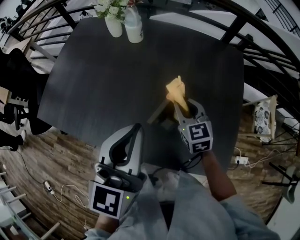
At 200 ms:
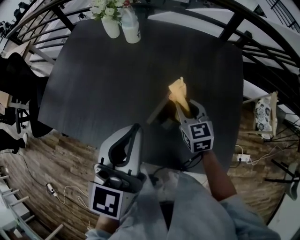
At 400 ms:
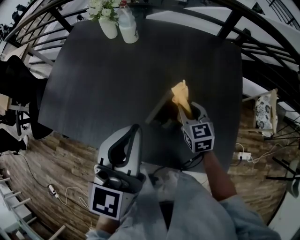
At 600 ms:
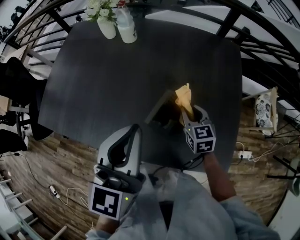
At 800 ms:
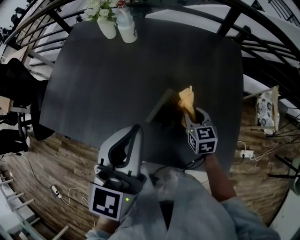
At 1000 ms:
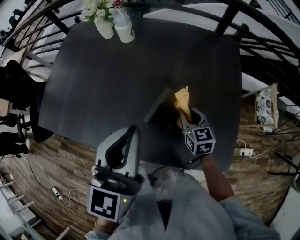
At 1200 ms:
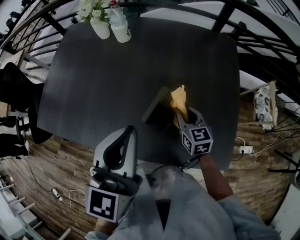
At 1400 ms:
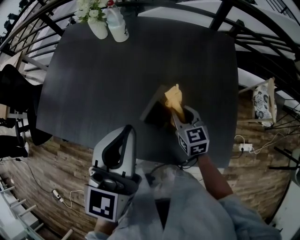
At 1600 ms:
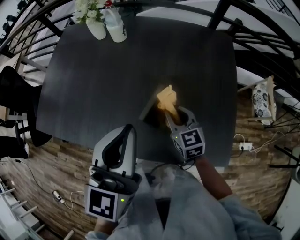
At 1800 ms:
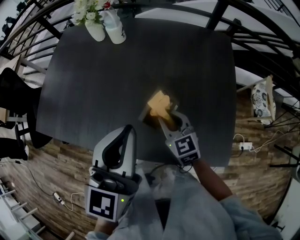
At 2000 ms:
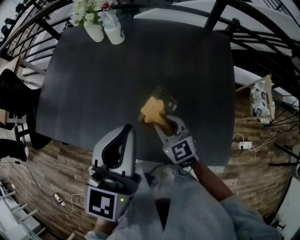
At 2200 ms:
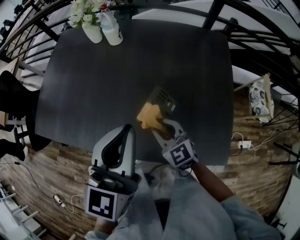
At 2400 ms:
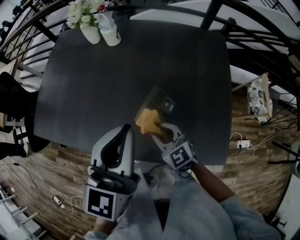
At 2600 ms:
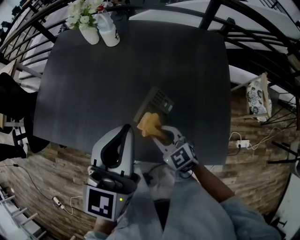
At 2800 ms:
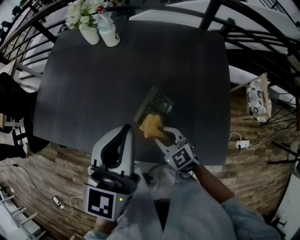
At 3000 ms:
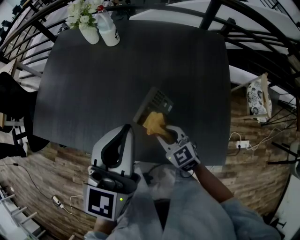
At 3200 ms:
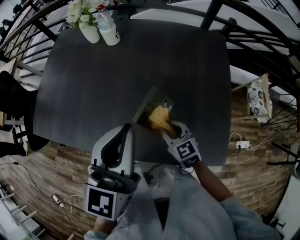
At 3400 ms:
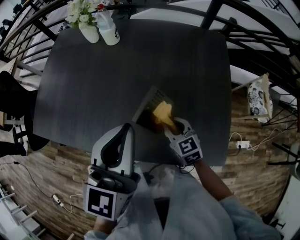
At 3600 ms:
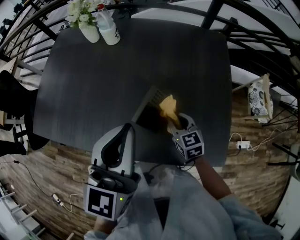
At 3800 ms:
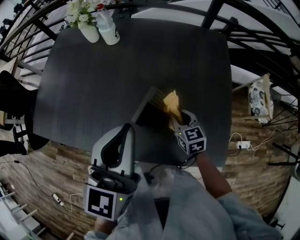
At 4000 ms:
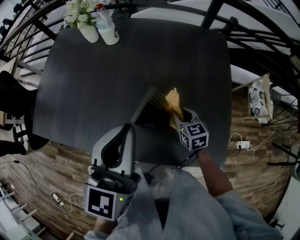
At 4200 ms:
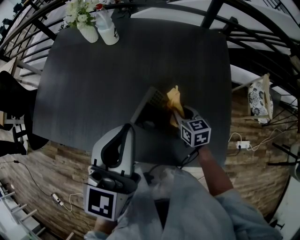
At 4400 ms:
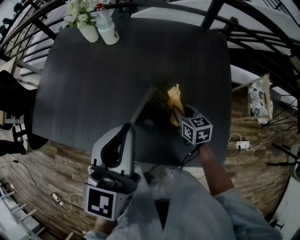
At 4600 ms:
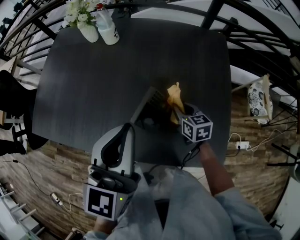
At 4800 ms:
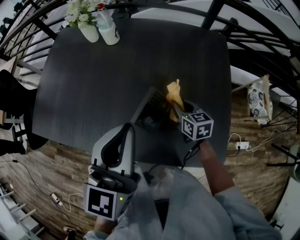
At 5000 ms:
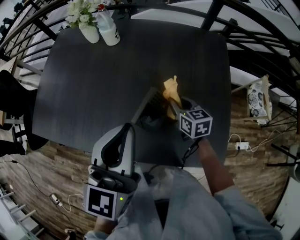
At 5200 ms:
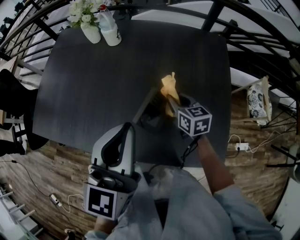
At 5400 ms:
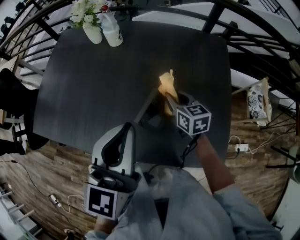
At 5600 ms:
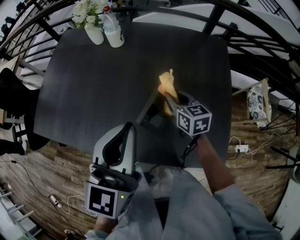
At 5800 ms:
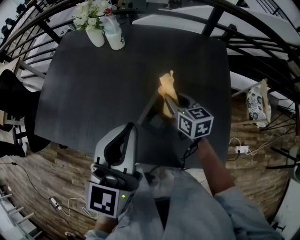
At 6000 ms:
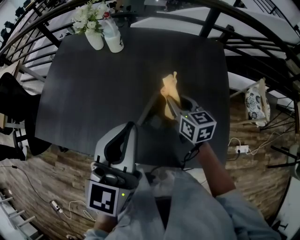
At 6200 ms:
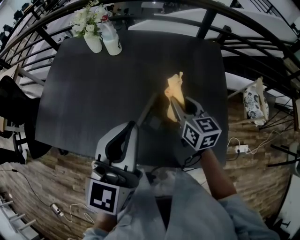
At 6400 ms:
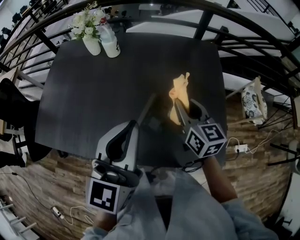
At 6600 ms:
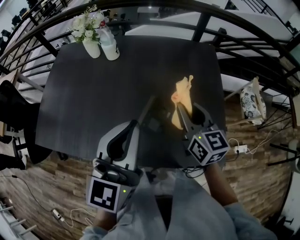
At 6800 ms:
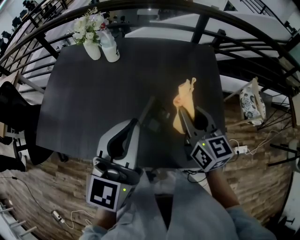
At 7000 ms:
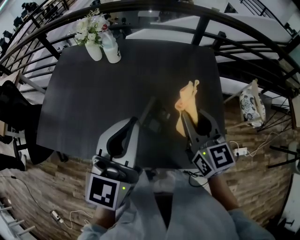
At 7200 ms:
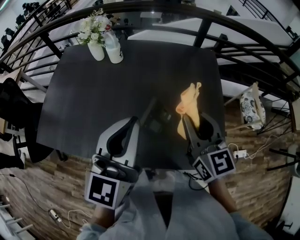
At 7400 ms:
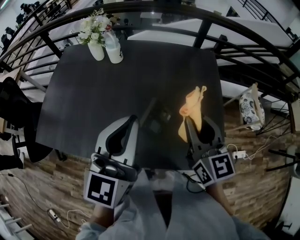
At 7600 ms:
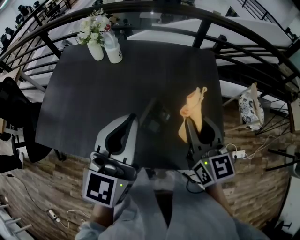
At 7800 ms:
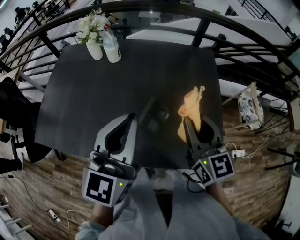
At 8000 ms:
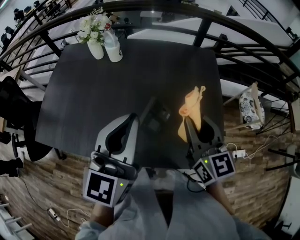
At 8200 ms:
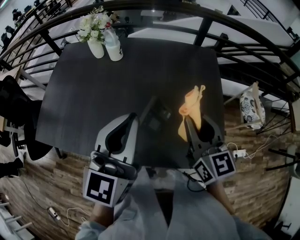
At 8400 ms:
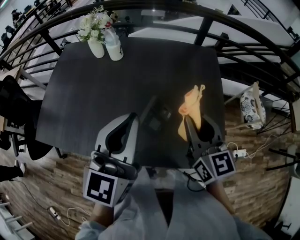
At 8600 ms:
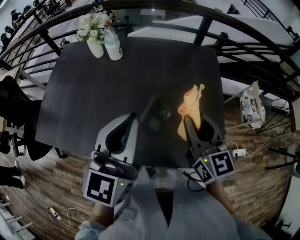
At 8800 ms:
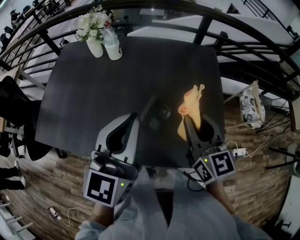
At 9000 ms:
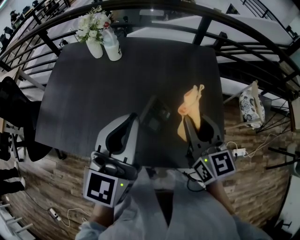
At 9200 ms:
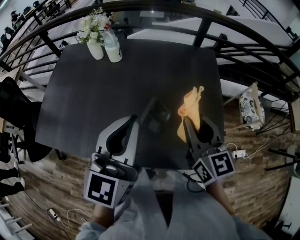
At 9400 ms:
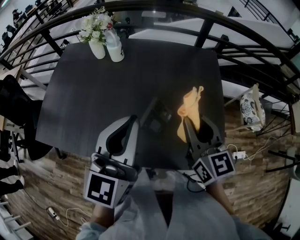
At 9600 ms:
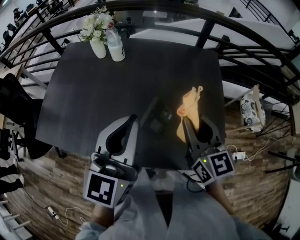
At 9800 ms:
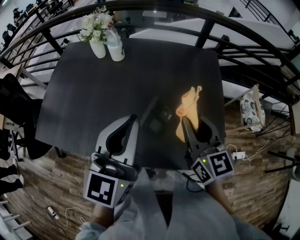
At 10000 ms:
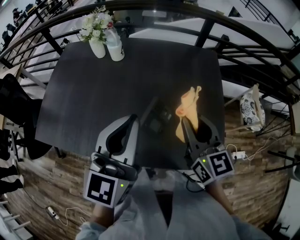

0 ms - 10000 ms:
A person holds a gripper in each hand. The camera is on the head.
0 ms - 1400 ms: The right gripper changes place by about 5 cm.
1400 ms - 2800 ms: The right gripper goes some 10 cm backward and to the left, and swivels roughly 20 degrees.
2800 ms - 4200 ms: The right gripper travels to the right and forward by about 15 cm, and turns by some 30 degrees.
4200 ms - 5800 ms: The right gripper heads upward, to the left and forward, covering roughly 10 cm.
5800 ms - 7200 ms: The right gripper goes roughly 20 cm upward and backward, and changes its angle by about 30 degrees.
7200 ms - 8600 ms: The grippers make only small movements.
8600 ms - 10000 ms: Both grippers stay put.

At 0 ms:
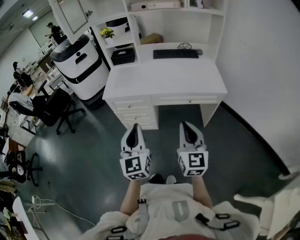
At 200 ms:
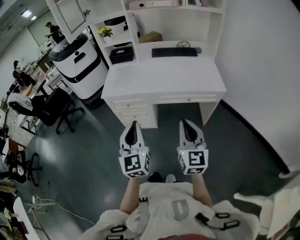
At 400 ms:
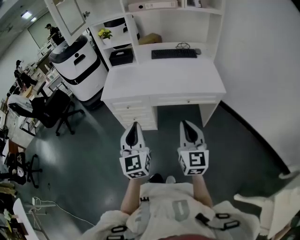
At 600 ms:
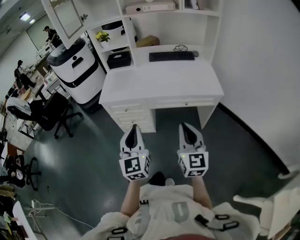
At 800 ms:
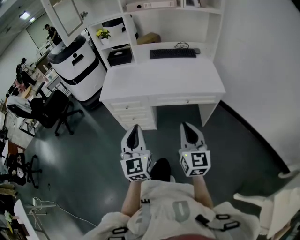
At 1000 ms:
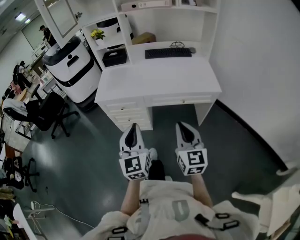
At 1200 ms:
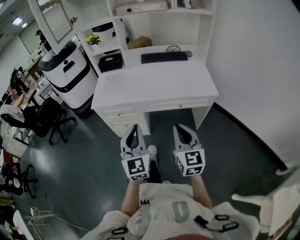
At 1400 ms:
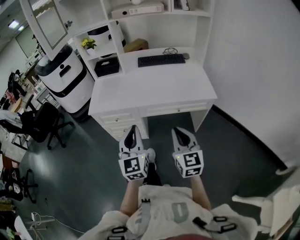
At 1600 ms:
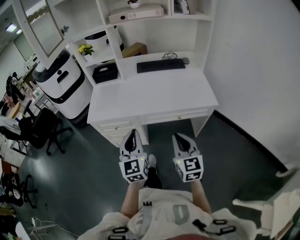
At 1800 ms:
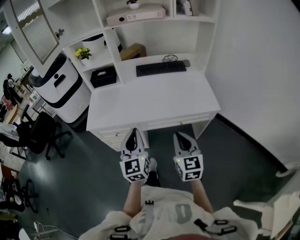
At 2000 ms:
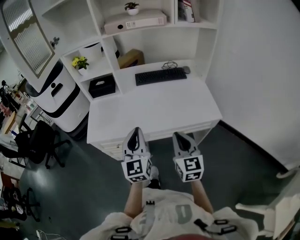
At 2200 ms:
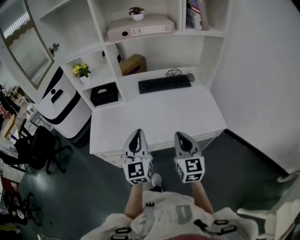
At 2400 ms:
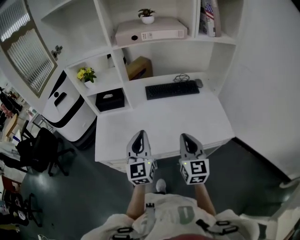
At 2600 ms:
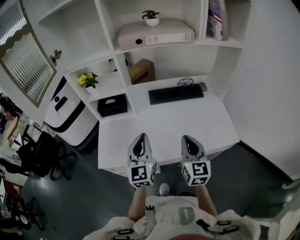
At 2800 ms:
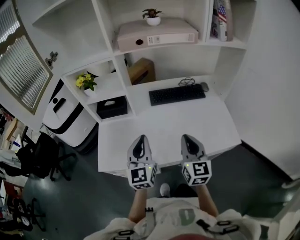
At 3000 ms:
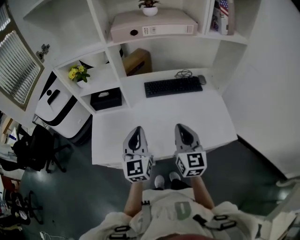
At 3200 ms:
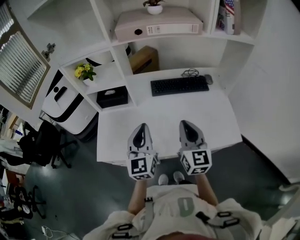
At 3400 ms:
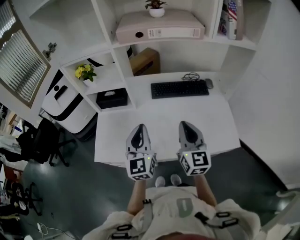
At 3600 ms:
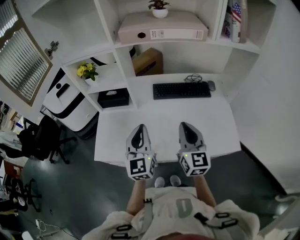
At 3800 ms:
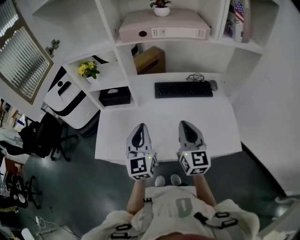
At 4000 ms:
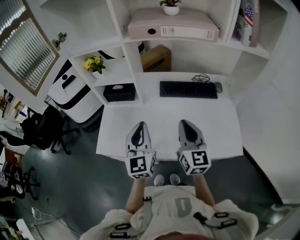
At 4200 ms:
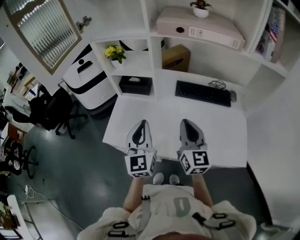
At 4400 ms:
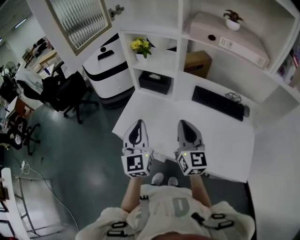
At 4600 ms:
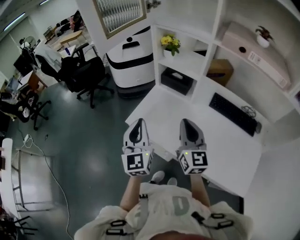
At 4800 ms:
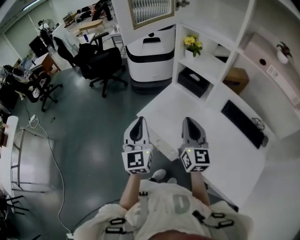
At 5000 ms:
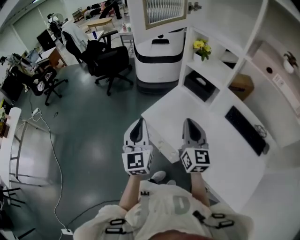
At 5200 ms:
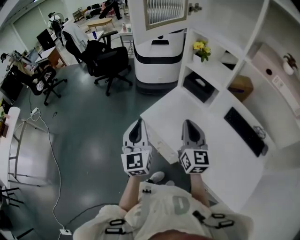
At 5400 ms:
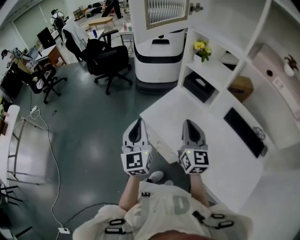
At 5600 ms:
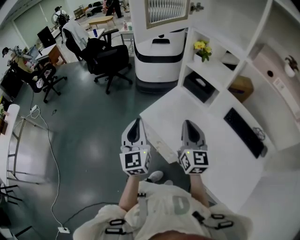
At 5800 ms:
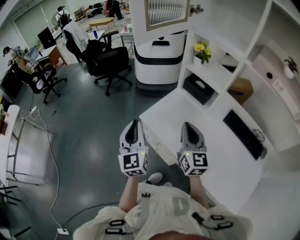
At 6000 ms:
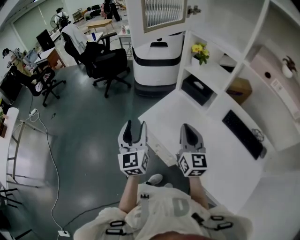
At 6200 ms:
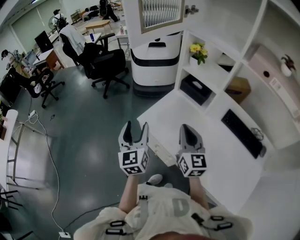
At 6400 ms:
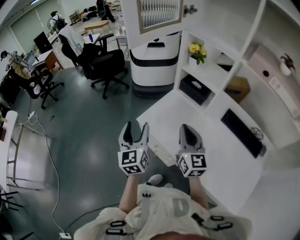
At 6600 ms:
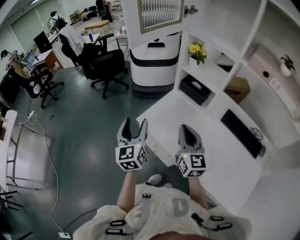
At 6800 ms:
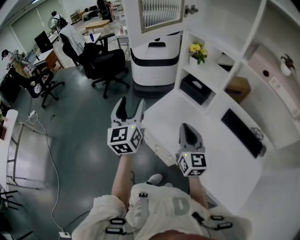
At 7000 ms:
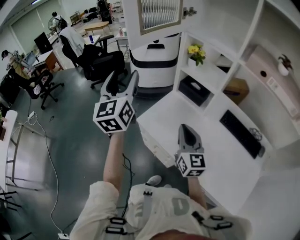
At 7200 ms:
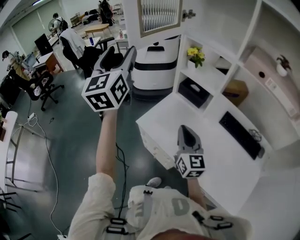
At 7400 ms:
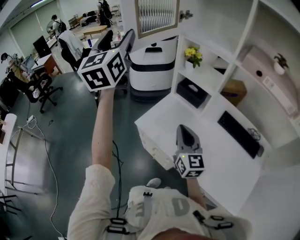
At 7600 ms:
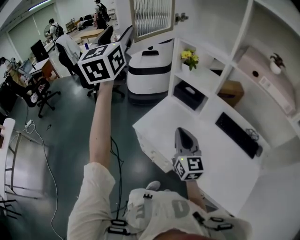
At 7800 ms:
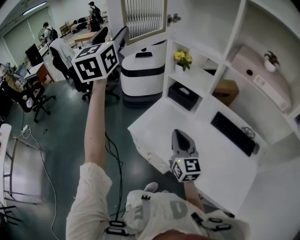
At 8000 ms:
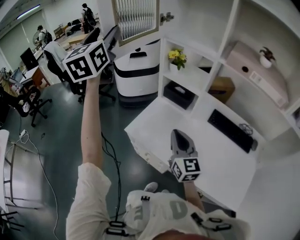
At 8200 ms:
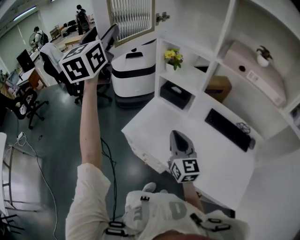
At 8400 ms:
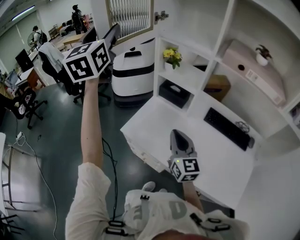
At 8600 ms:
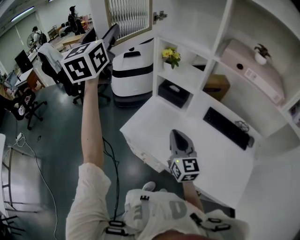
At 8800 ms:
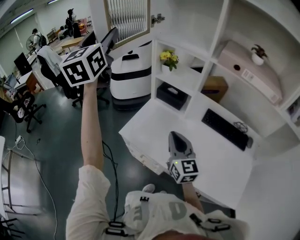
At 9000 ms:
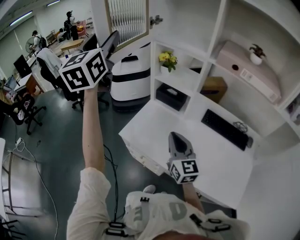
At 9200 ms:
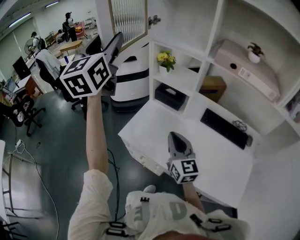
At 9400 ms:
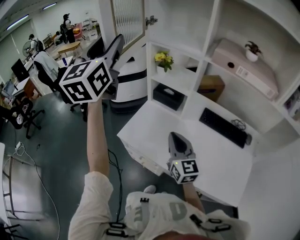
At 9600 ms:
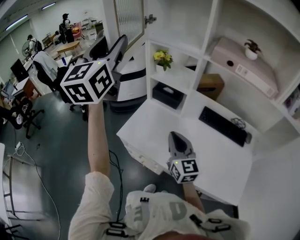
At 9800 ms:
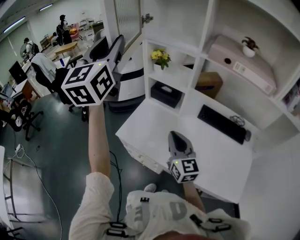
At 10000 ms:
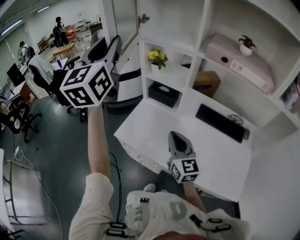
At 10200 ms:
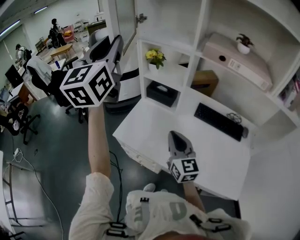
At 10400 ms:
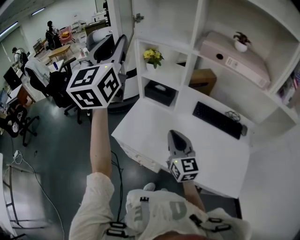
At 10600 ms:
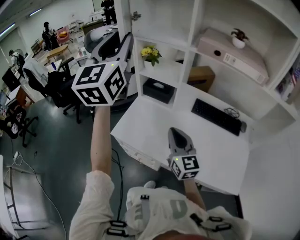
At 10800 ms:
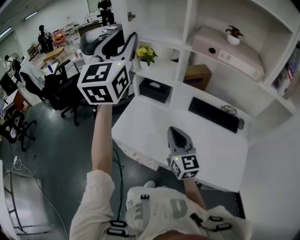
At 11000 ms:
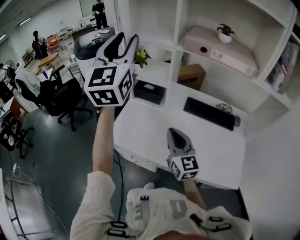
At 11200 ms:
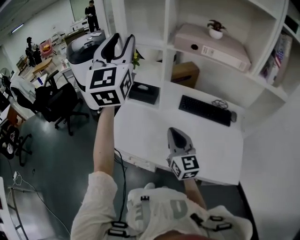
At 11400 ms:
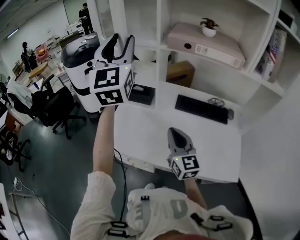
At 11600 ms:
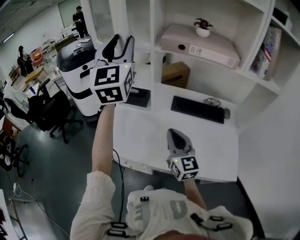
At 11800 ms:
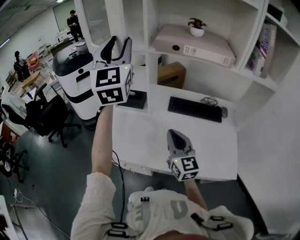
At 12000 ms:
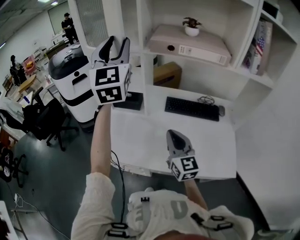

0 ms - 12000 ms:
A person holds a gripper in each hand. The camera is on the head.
0 ms - 1600 ms: The grippers both shift forward by roughly 10 cm.
1600 ms - 3000 ms: Both grippers move forward, some 35 cm.
3000 ms - 4400 ms: The left gripper changes place by some 15 cm, and swivels roughly 30 degrees. The right gripper shifts by some 15 cm, and swivels about 30 degrees.
4400 ms - 6000 ms: The left gripper heads to the left, covering about 15 cm, swivels about 30 degrees, and opens its fingers. Meanwhile the right gripper goes some 15 cm to the left and forward, and rotates about 20 degrees.
6000 ms - 7600 ms: The left gripper is displaced upward and forward by about 40 cm.
7600 ms - 9000 ms: The grippers move only a little.
9000 ms - 10400 ms: The left gripper travels to the right by about 10 cm, and closes.
10400 ms - 12000 ms: The right gripper shifts roughly 10 cm to the right, while the left gripper shifts about 15 cm to the right and forward.

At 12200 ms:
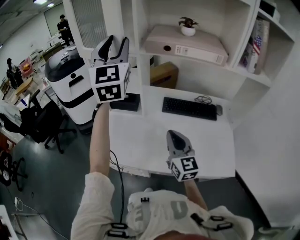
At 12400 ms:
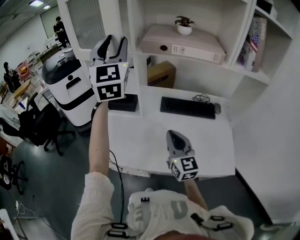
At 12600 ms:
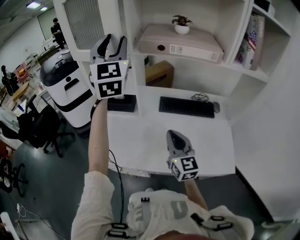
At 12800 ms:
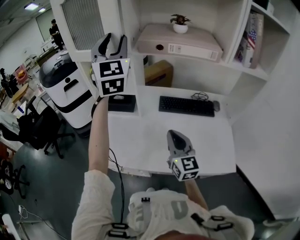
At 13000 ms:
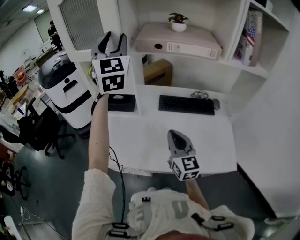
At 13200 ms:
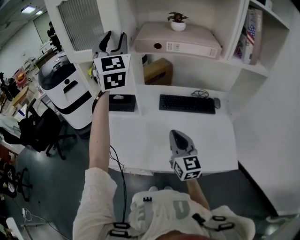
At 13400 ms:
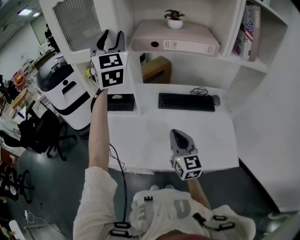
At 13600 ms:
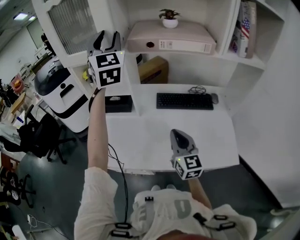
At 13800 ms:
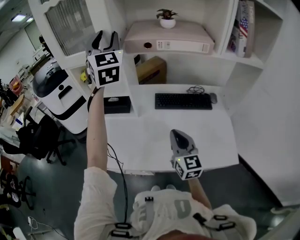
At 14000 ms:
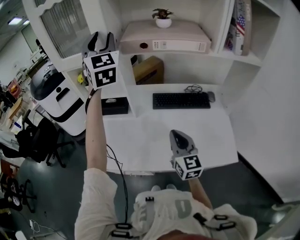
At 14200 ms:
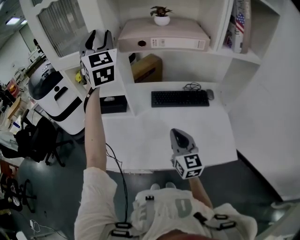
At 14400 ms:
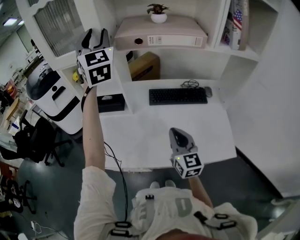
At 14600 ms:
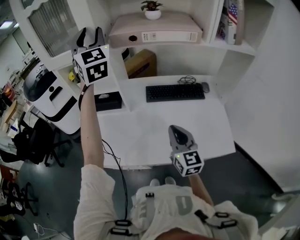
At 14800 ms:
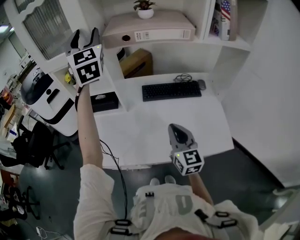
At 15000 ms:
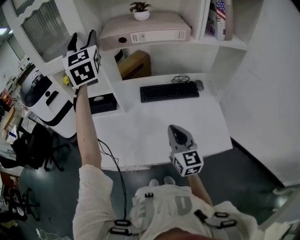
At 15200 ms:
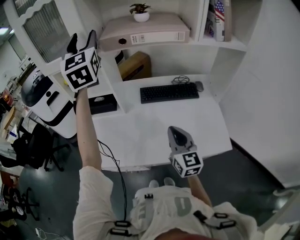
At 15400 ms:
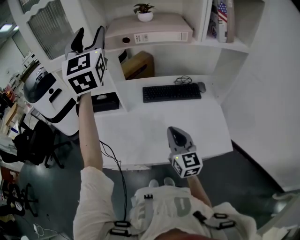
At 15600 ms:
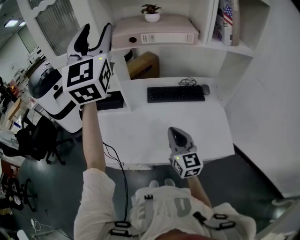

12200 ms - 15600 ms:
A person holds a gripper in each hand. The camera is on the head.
12200 ms - 13800 ms: The left gripper shifts roughly 10 cm forward.
13800 ms - 15600 ms: The left gripper is displaced backward by approximately 10 cm.
